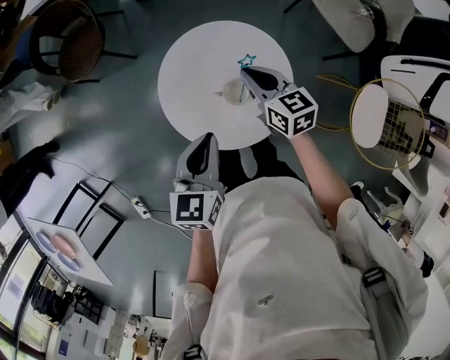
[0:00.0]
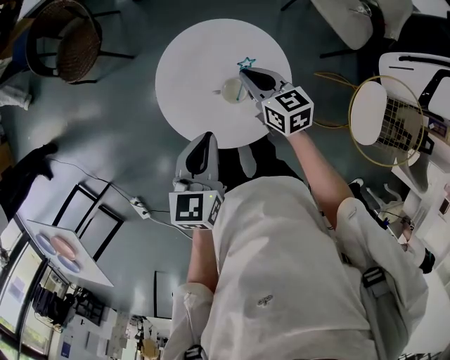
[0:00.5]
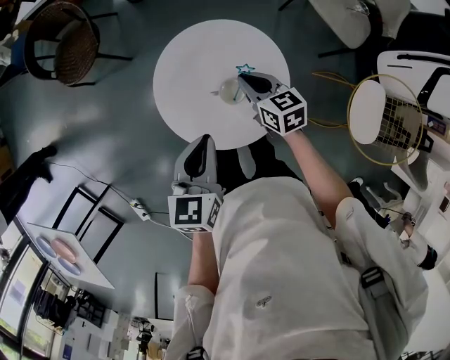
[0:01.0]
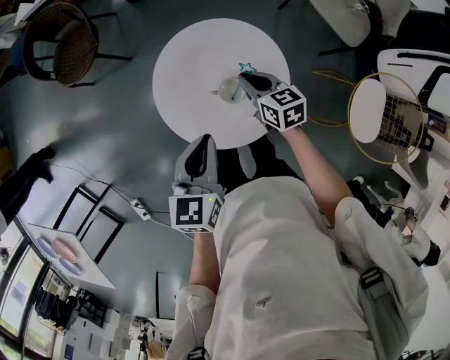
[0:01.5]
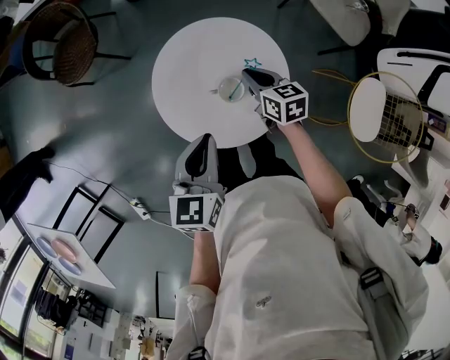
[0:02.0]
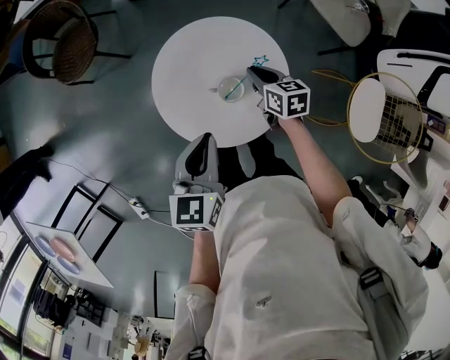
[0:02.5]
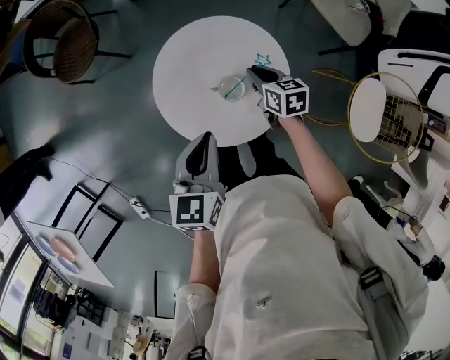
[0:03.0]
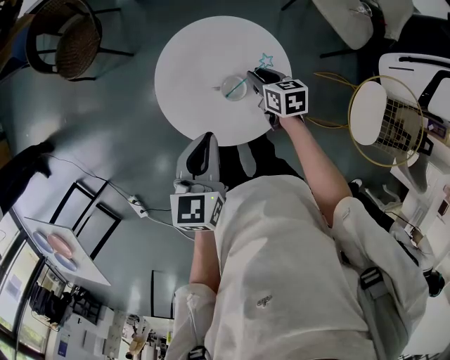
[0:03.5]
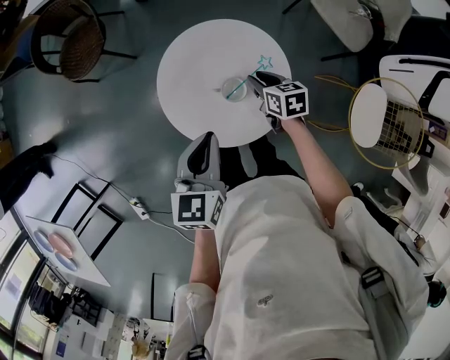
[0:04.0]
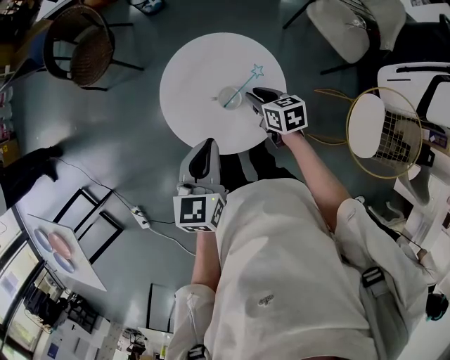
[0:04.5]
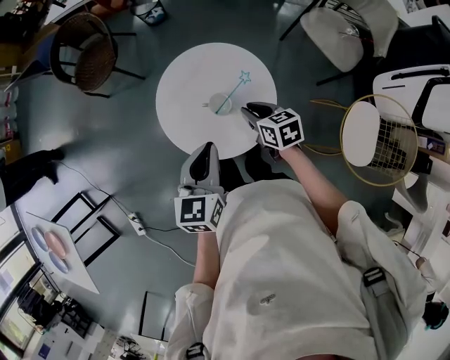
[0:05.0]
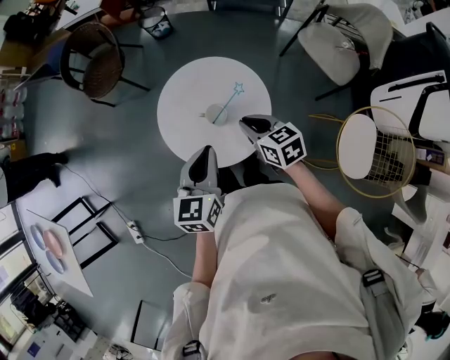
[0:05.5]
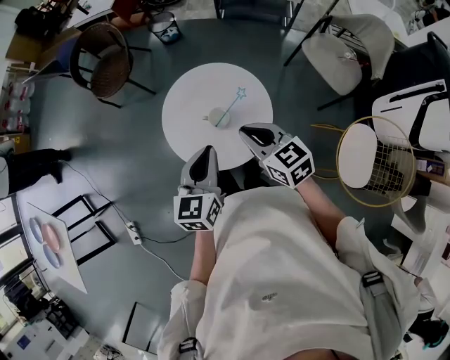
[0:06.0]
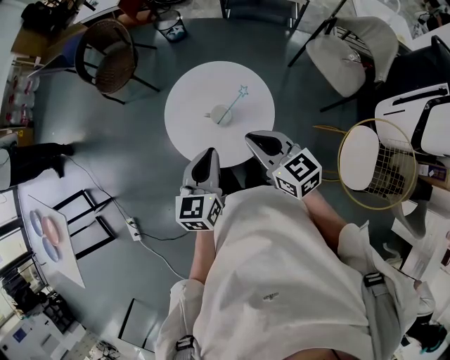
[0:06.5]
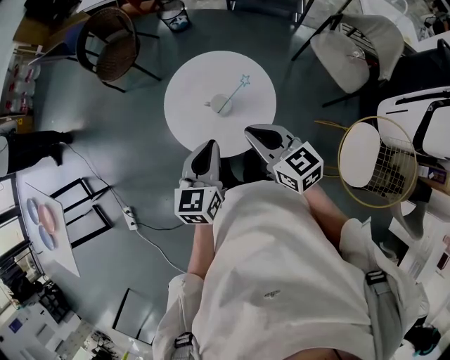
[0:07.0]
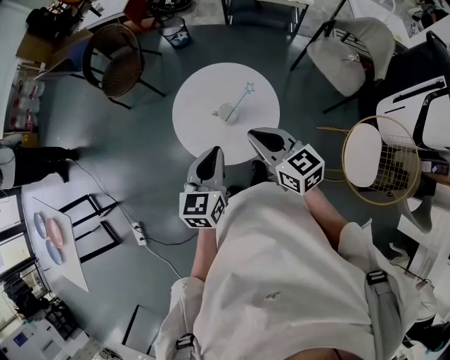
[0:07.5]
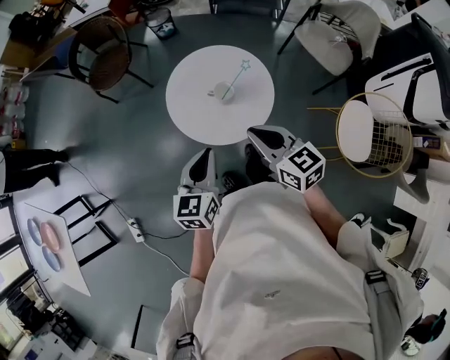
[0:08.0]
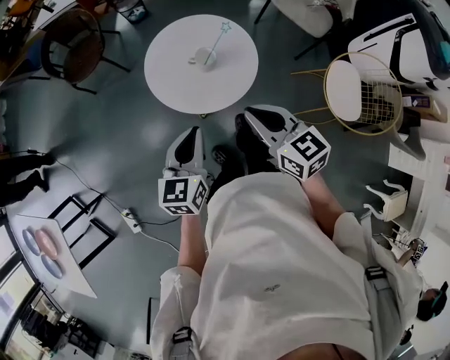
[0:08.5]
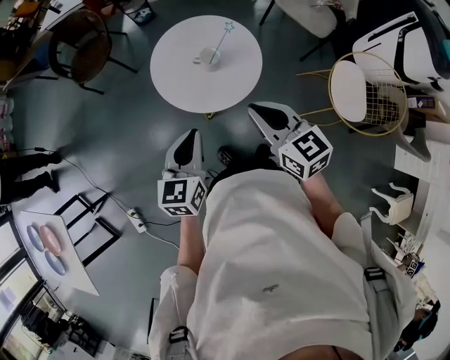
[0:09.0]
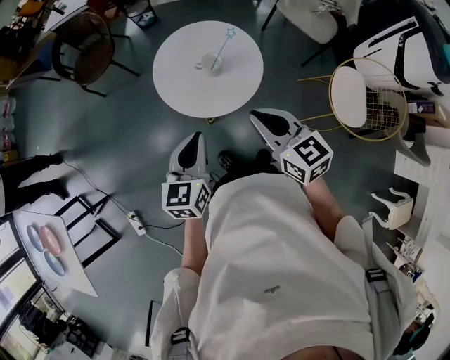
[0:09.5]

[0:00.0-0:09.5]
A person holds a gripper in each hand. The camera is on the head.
0:00.0 to 0:02.0: The right gripper shifts approximately 10 cm downward.
0:02.0 to 0:04.0: The right gripper opens its fingers.
0:04.0 to 0:05.5: The left gripper moves to the right and backward, approximately 10 cm; the right gripper moves upward and backward, about 15 cm, and changes its angle by some 20 degrees.
0:05.5 to 0:07.5: The right gripper shifts some 15 cm upward and backward. Meanwhile the left gripper ends up about 5 cm from where it was.
0:07.5 to 0:09.5: The right gripper shifts about 15 cm backward, while the left gripper moves backward and to the left, some 15 cm.

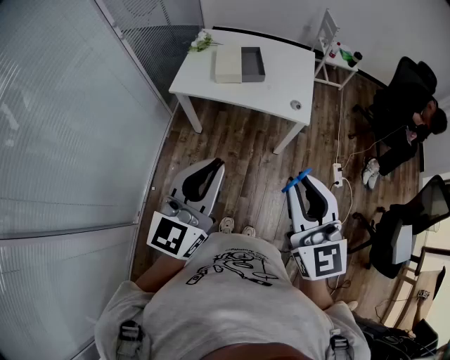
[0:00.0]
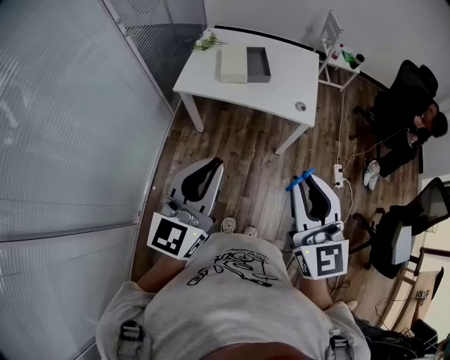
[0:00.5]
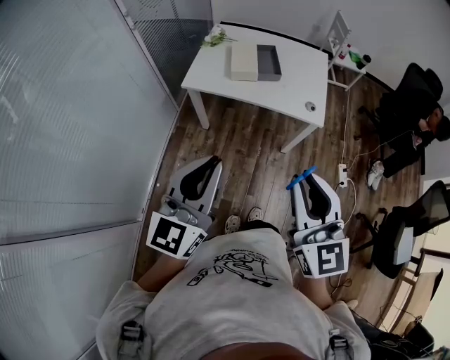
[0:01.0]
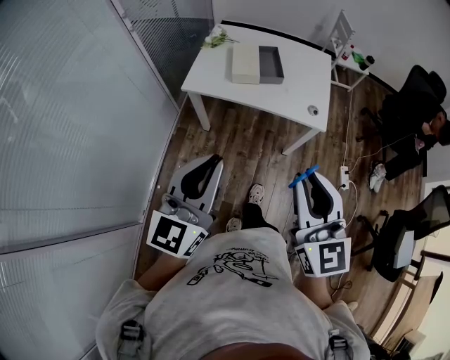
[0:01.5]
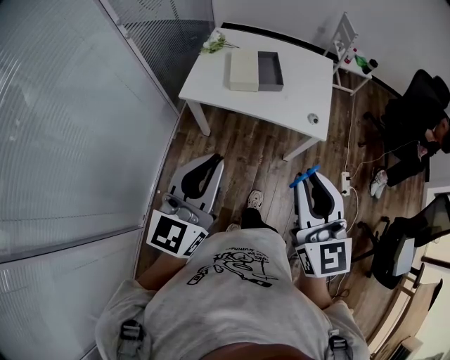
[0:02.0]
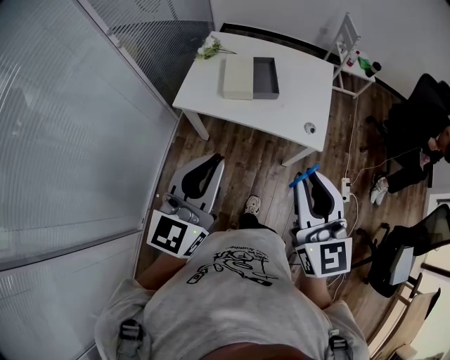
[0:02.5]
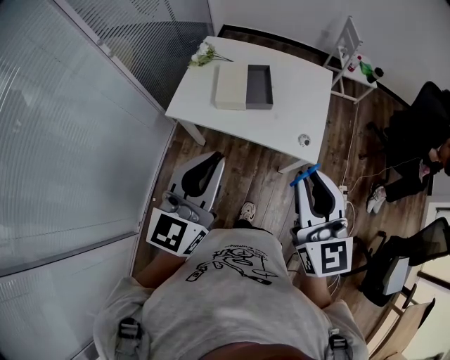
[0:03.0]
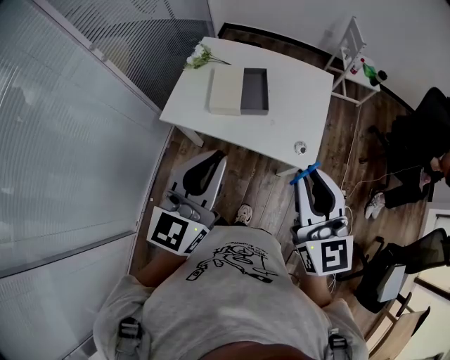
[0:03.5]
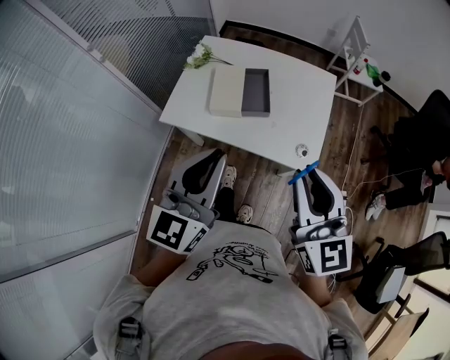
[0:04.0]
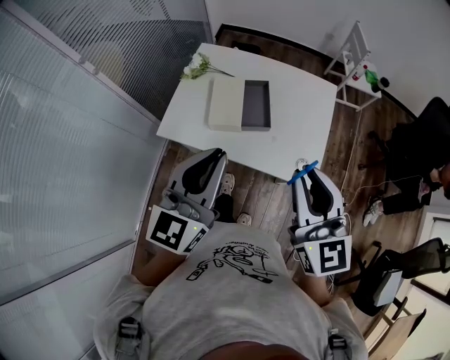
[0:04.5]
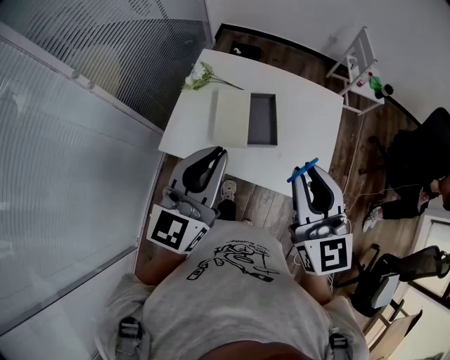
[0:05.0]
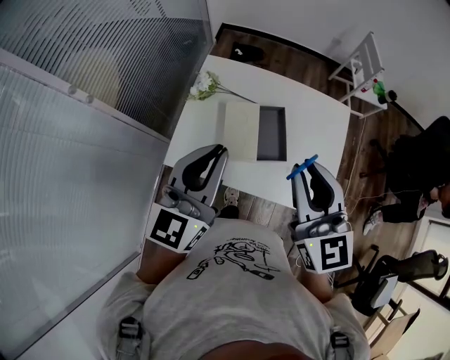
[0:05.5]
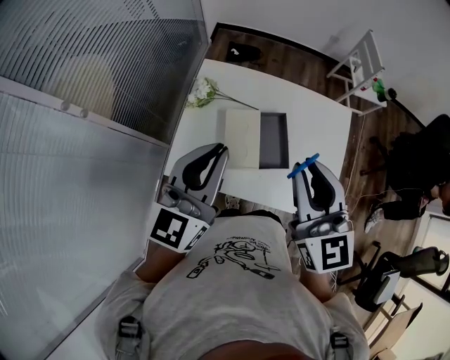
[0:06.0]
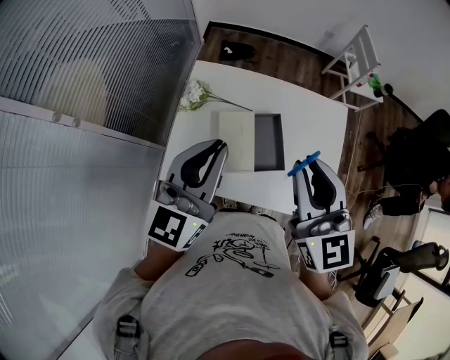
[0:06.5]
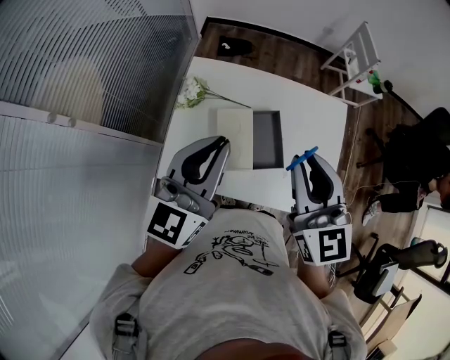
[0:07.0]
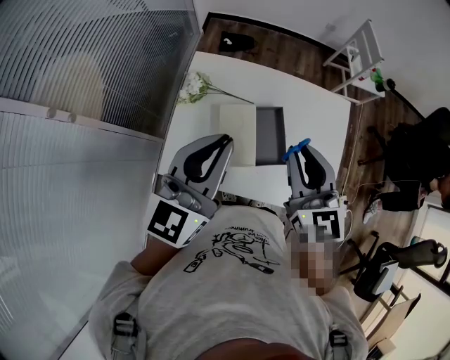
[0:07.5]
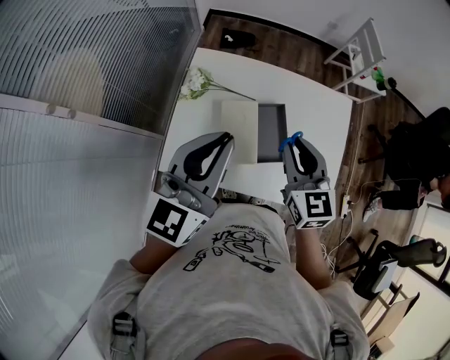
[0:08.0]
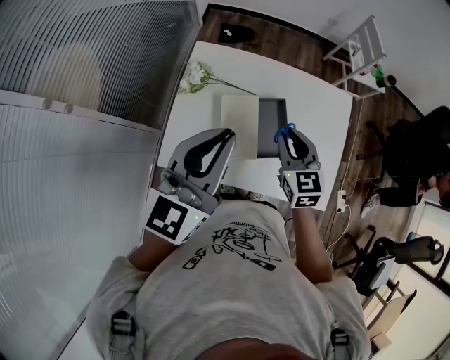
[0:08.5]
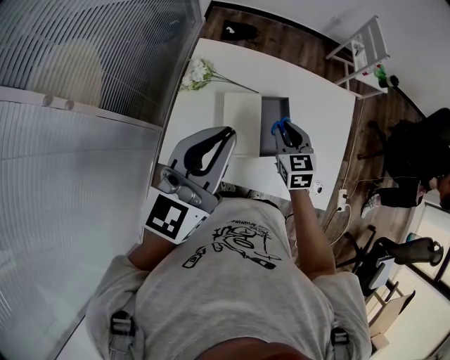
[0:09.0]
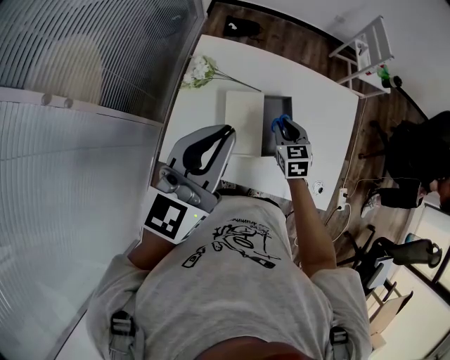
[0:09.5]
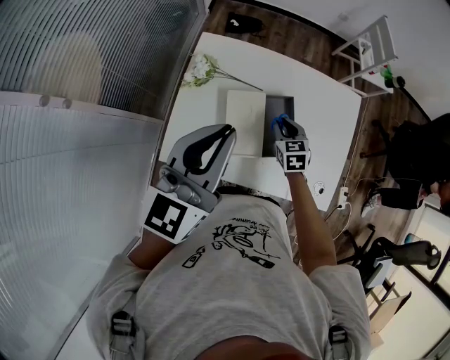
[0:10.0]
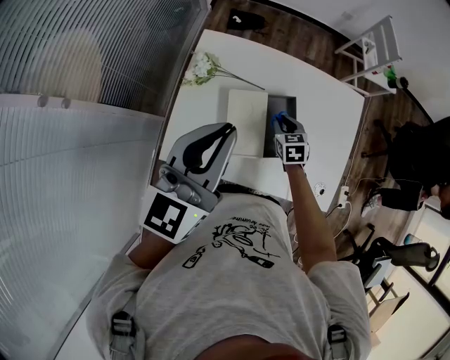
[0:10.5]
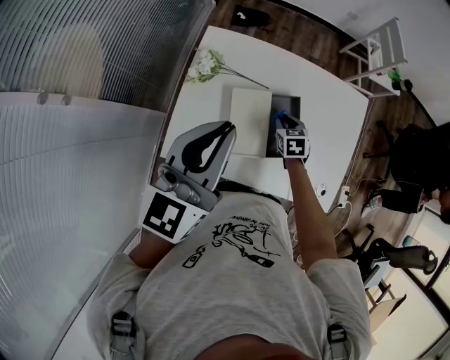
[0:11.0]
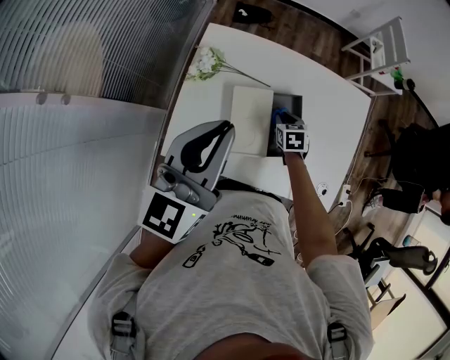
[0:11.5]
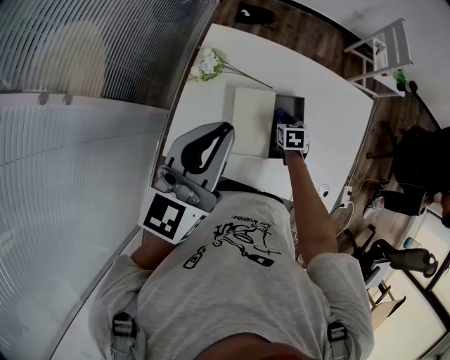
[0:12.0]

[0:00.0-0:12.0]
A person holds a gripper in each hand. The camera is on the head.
0:00.0 to 0:02.0: Both grippers move forward and to the left, roughly 10 cm.
0:02.0 to 0:04.0: Both grippers travel together forward and to the right, approximately 25 cm.
0:04.0 to 0:06.0: Both grippers travel together forward and to the left, roughly 30 cm.
0:06.0 to 0:08.0: The right gripper goes about 15 cm downward and forward.
0:08.0 to 0:10.0: The right gripper goes roughly 25 cm downward, and swivels about 30 degrees.
0:10.0 to 0:12.0: The right gripper is displaced downward by some 10 cm.

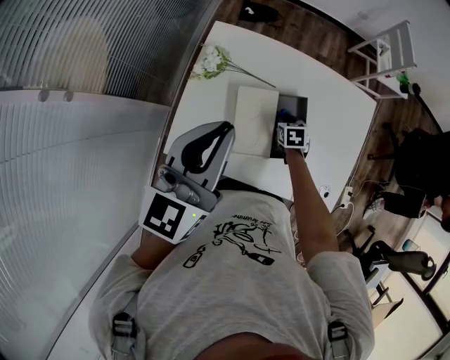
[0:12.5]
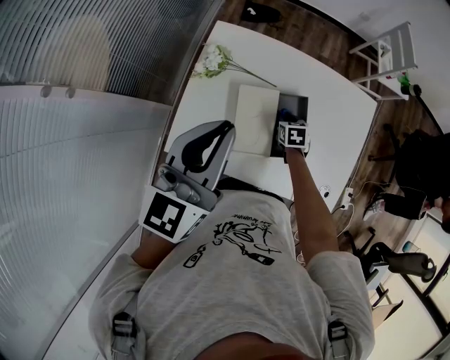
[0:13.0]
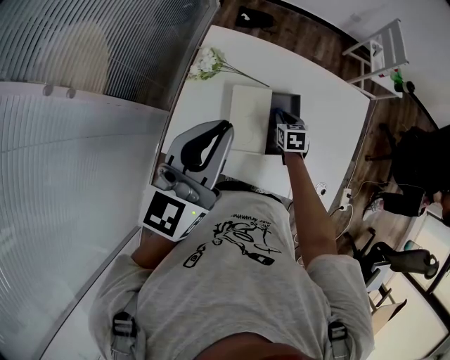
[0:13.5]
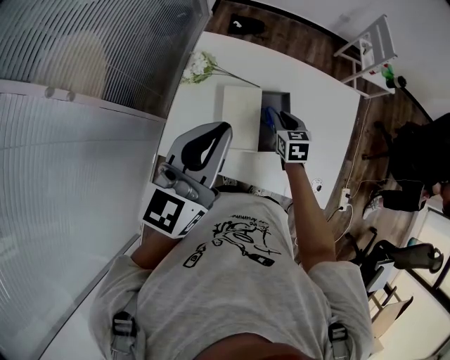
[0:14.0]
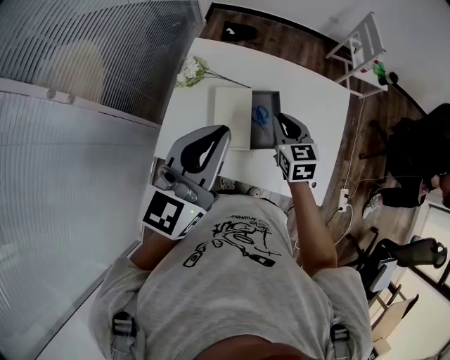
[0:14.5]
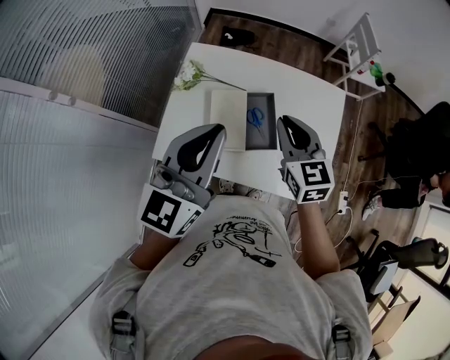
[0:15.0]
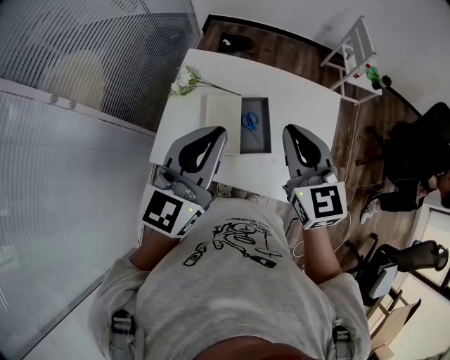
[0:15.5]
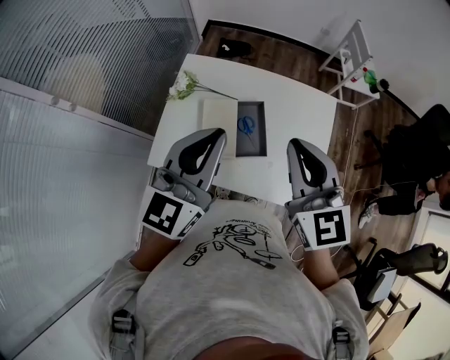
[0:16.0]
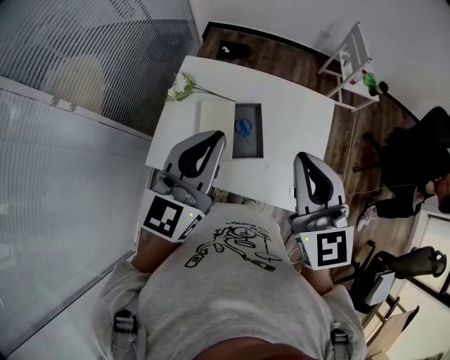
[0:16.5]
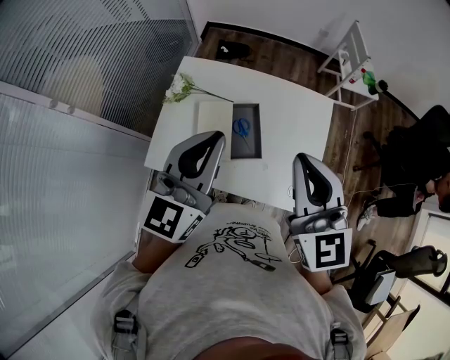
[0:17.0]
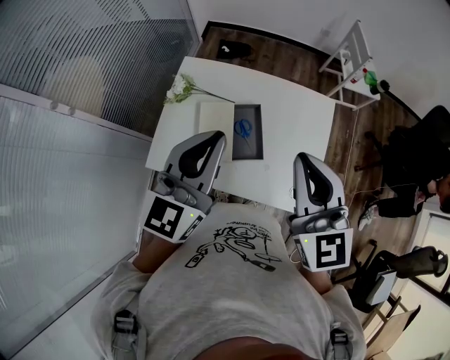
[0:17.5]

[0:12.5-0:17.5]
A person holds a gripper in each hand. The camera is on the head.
0:12.5 to 0:15.0: The left gripper heads to the right, backward and upward, covering some 15 cm, while the right gripper goes some 35 cm upward, and tilts its fingers approximately 40 degrees upward.
0:15.0 to 0:17.5: The right gripper goes some 20 cm upward, backward and to the right. Meanwhile the left gripper shifts roughly 5 cm to the right.
